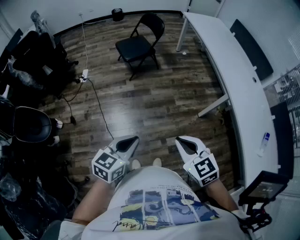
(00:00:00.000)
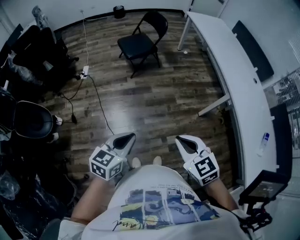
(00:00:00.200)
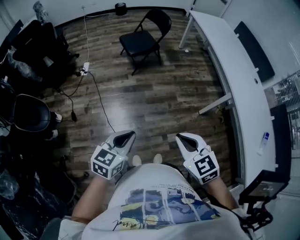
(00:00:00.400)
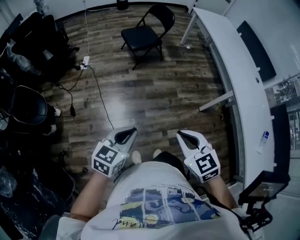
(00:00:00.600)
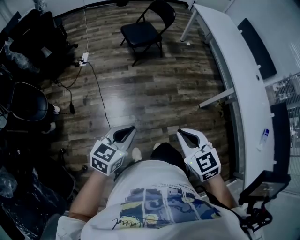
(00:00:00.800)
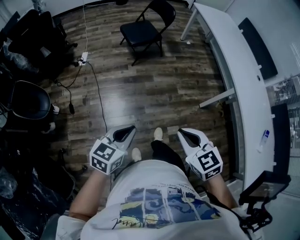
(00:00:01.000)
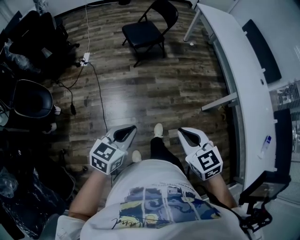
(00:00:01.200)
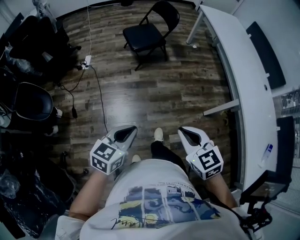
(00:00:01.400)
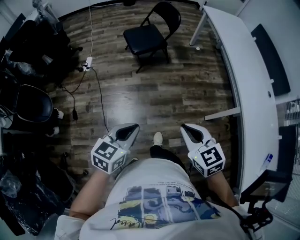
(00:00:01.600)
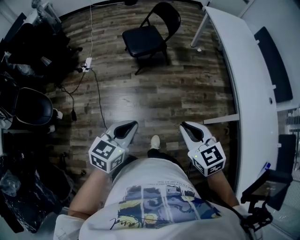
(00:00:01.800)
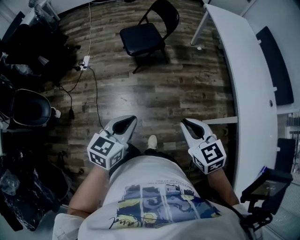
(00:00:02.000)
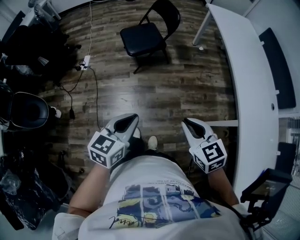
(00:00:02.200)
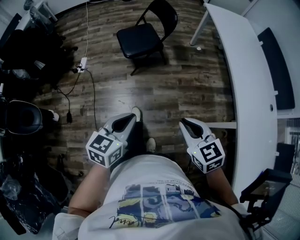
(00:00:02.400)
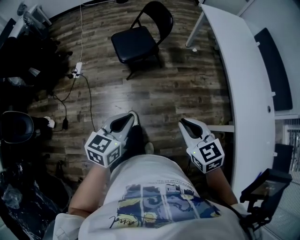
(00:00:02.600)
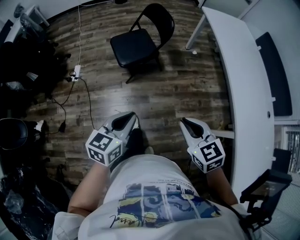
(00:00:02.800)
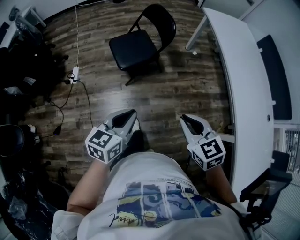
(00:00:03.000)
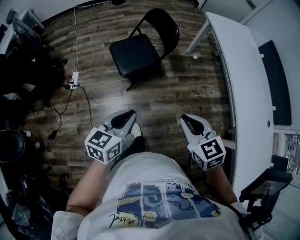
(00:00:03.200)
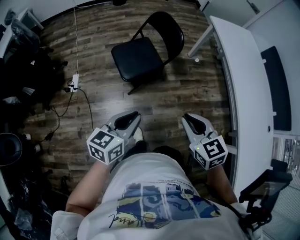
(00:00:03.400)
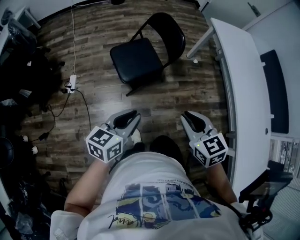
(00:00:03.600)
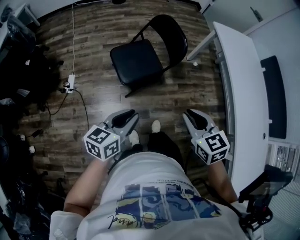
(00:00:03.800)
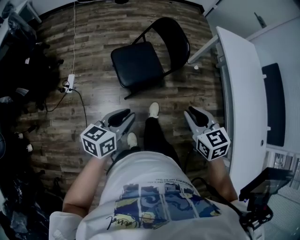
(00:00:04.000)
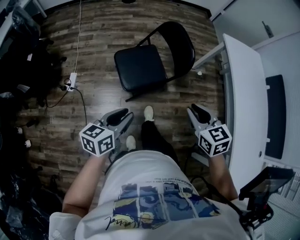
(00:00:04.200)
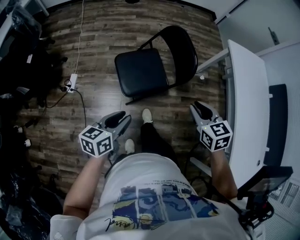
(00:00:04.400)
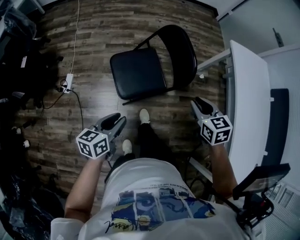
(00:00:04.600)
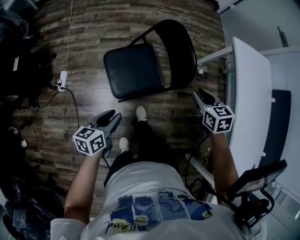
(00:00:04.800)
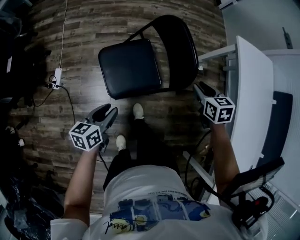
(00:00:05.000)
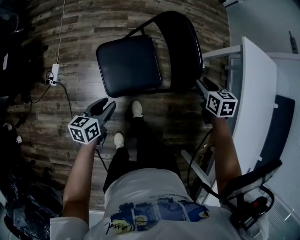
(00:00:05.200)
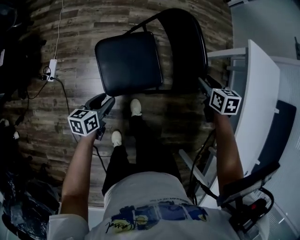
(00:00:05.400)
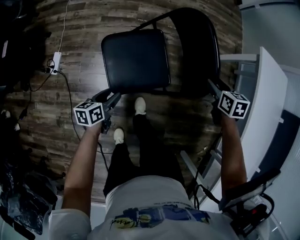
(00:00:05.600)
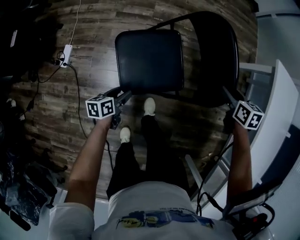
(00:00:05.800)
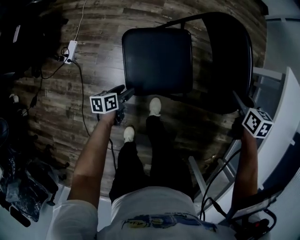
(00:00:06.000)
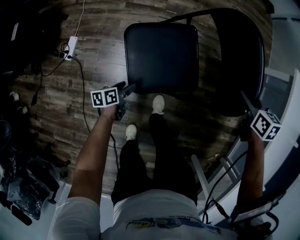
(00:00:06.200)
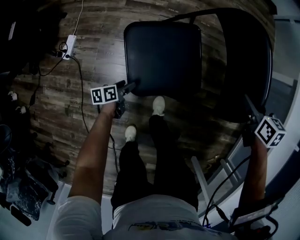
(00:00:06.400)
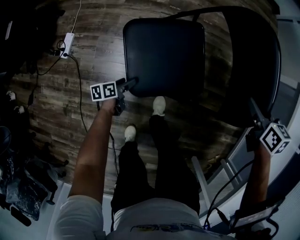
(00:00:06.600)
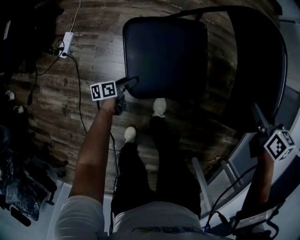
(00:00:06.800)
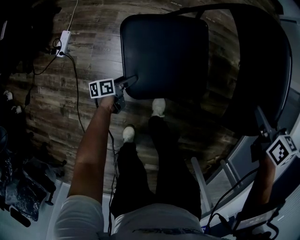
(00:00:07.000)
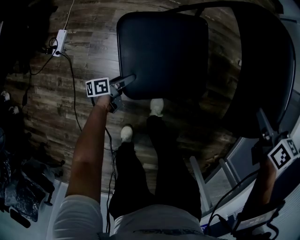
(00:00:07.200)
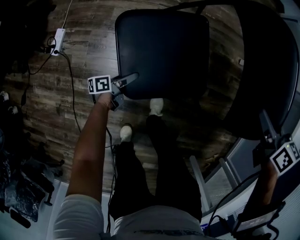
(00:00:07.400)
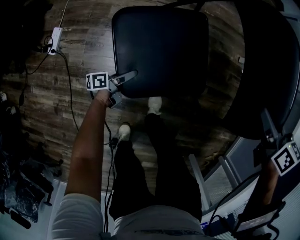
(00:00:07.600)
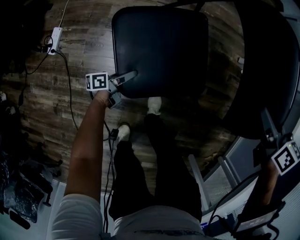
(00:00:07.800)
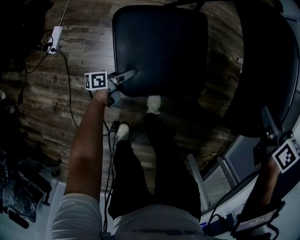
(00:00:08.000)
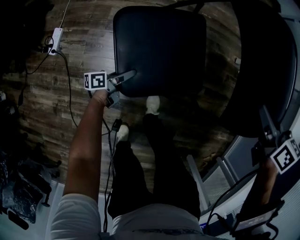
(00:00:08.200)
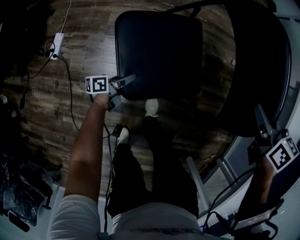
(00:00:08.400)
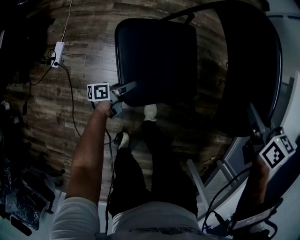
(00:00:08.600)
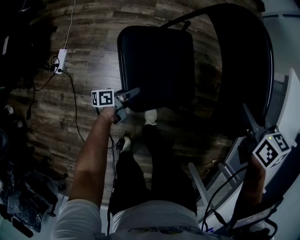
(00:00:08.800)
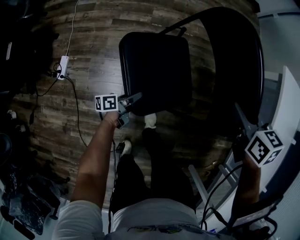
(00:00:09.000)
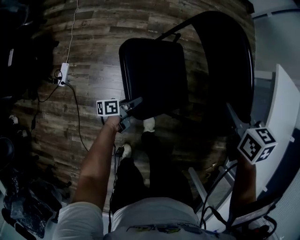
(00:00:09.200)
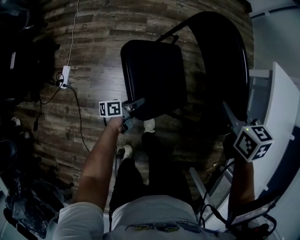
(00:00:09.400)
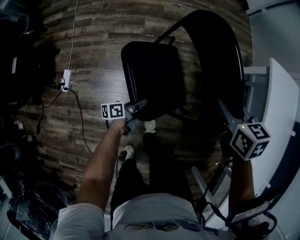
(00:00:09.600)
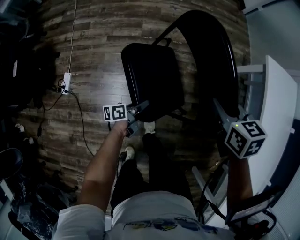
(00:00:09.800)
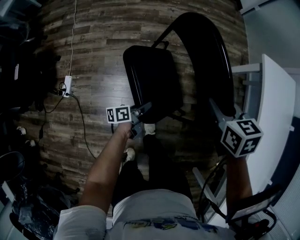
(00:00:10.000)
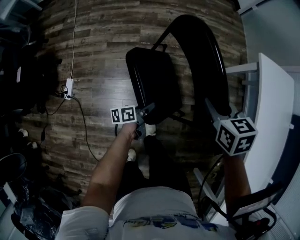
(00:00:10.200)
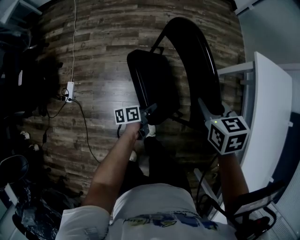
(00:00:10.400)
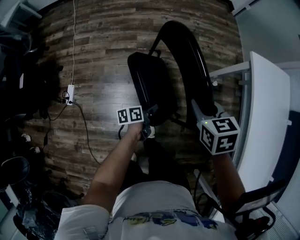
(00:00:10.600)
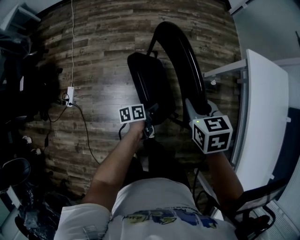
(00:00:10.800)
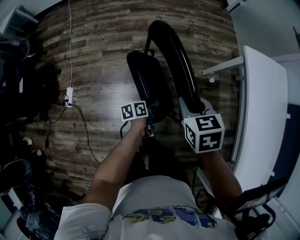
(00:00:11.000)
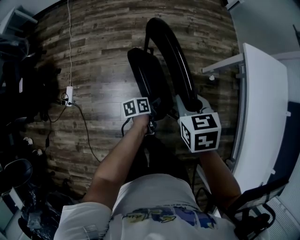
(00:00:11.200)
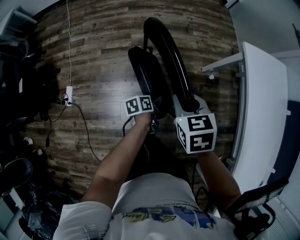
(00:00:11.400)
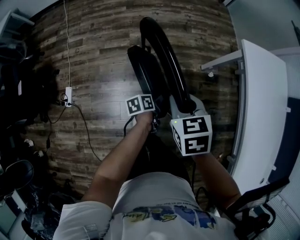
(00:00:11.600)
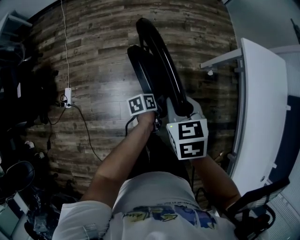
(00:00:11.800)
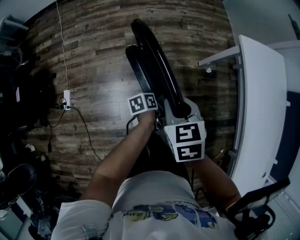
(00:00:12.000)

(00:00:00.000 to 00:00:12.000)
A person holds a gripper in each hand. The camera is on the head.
00:00:00.000 - 00:00:01.600: The two grippers go approximately 15 cm forward.
00:00:01.600 - 00:00:03.000: Both grippers travel together forward, roughly 30 cm.
00:00:03.000 - 00:00:04.400: The left gripper shifts roughly 25 cm forward and to the left; the right gripper moves forward, about 35 cm.
00:00:04.400 - 00:00:06.000: The left gripper is displaced downward and forward by about 40 cm, swivels about 30 degrees, and opens up. The right gripper heads forward and downward, covering about 35 cm, changes its angle by roughly 20 degrees, and opens up.
00:00:06.000 - 00:00:07.600: The left gripper heads downward, covering roughly 15 cm, and rotates some 30 degrees.
00:00:07.600 - 00:00:09.000: The right gripper heads upward, covering about 5 cm, and closes; the left gripper heads upward and to the right, covering approximately 15 cm, and closes its fingers.
00:00:09.000 - 00:00:10.400: The left gripper shifts about 15 cm to the right and upward.
00:00:10.400 - 00:00:12.000: The right gripper moves approximately 5 cm; the left gripper is displaced to the right by roughly 5 cm.

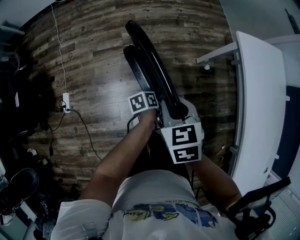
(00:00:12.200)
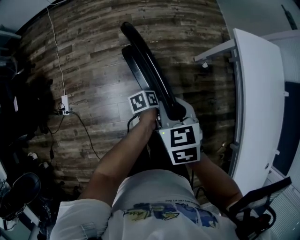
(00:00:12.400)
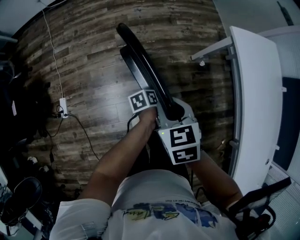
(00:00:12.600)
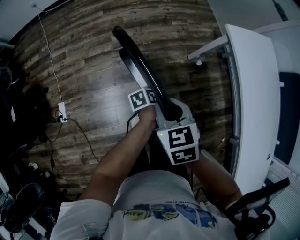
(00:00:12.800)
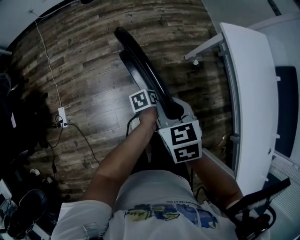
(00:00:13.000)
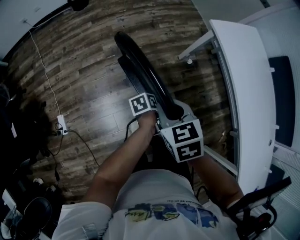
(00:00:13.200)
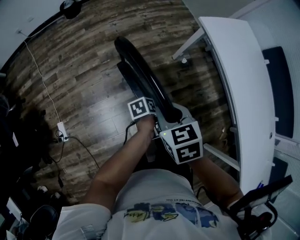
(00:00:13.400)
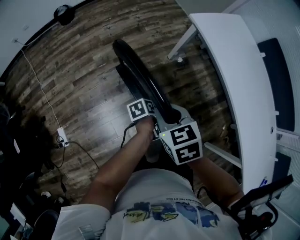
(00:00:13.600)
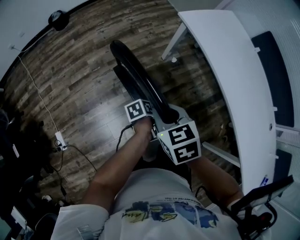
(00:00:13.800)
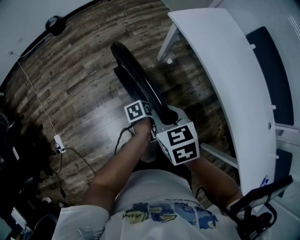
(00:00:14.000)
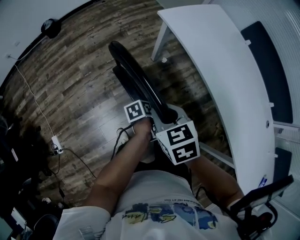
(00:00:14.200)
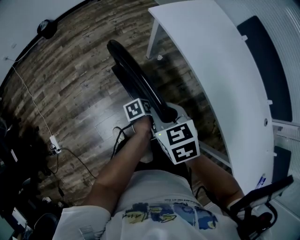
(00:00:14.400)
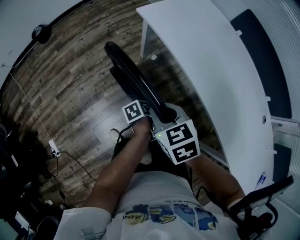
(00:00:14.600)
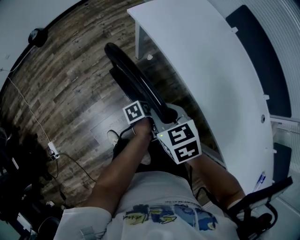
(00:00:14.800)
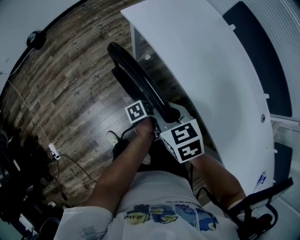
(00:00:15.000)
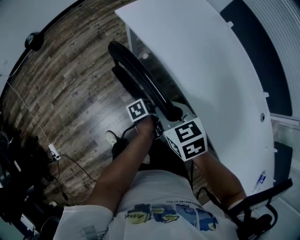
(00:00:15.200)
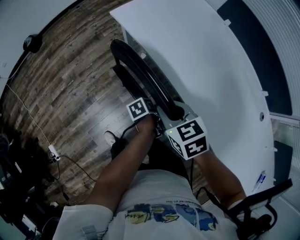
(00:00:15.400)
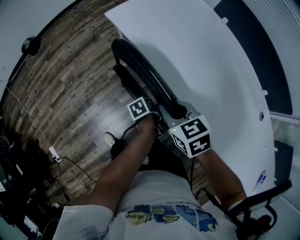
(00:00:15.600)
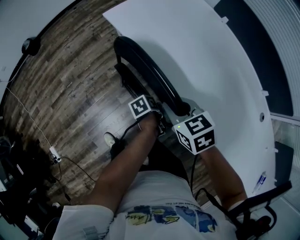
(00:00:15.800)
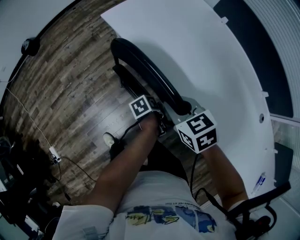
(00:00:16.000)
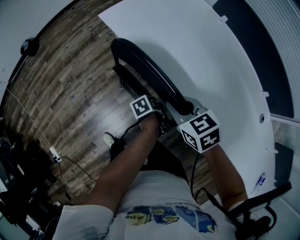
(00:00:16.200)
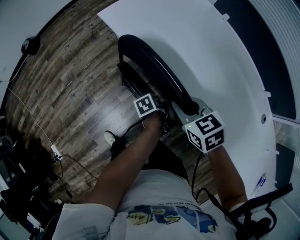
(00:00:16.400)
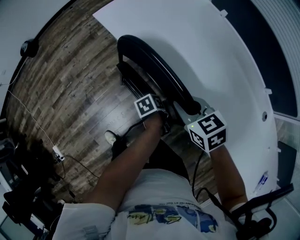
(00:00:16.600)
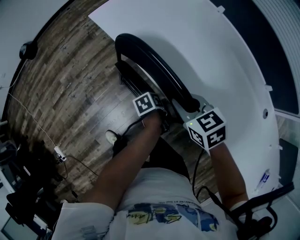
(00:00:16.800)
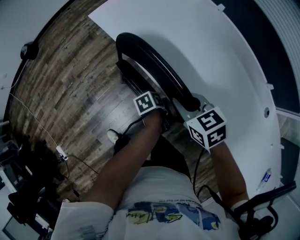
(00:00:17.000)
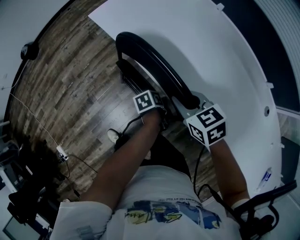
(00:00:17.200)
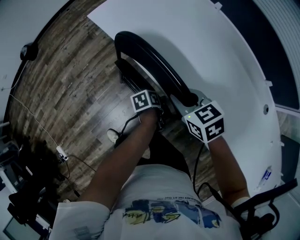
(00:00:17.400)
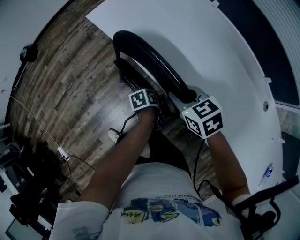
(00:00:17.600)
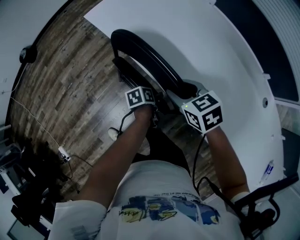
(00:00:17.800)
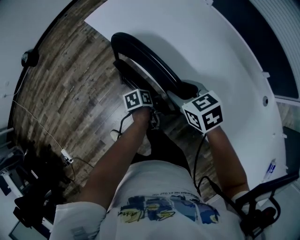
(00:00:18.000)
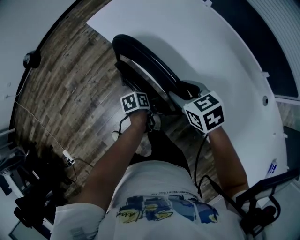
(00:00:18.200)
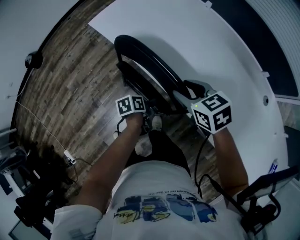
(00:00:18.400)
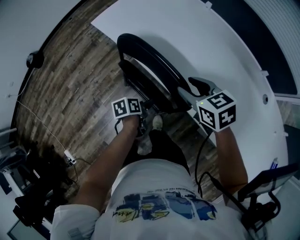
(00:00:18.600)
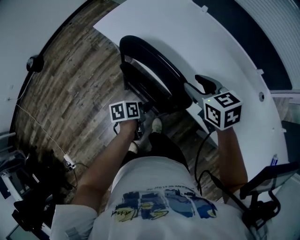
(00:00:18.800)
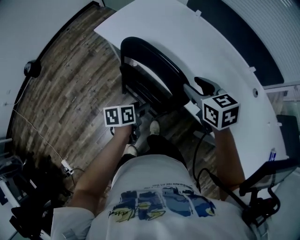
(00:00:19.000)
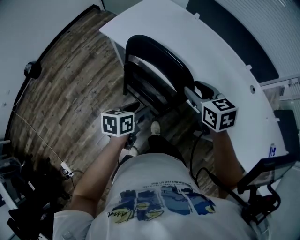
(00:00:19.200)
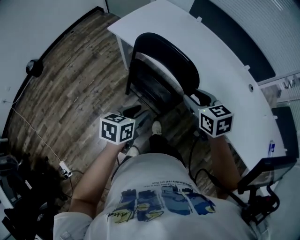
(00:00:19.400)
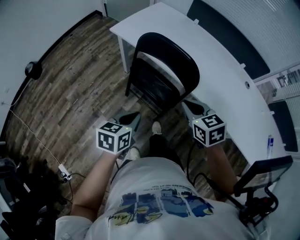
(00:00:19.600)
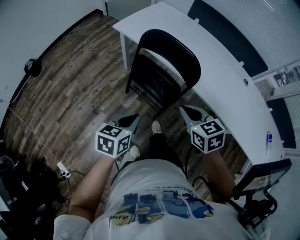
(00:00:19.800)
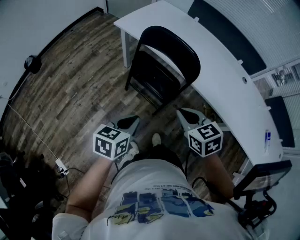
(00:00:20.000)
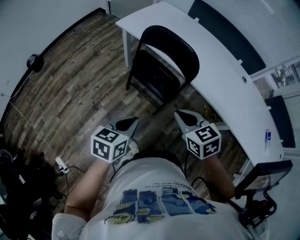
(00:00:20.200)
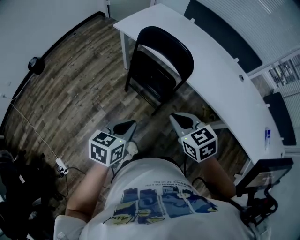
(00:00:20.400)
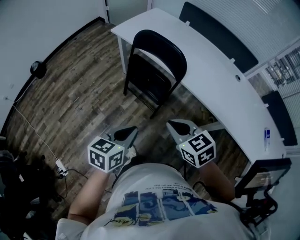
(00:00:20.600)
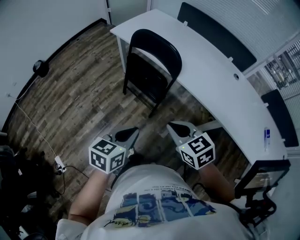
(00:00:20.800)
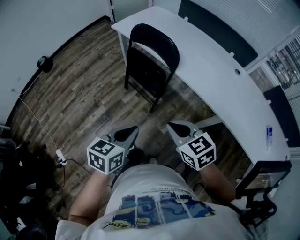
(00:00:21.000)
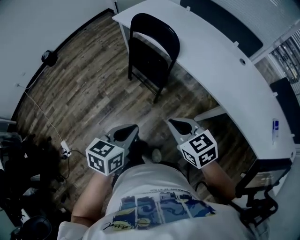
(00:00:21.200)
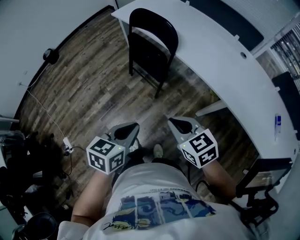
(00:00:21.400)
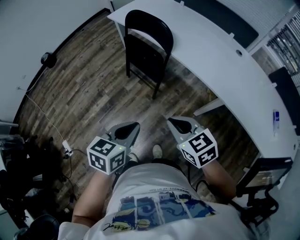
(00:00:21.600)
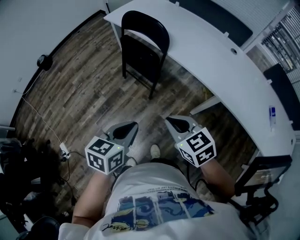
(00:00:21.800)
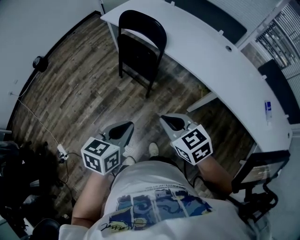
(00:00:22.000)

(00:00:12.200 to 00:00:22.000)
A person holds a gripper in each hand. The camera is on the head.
00:00:12.200 - 00:00:13.600: The right gripper travels to the right by about 5 cm. Meanwhile the left gripper travels to the right and backward by roughly 10 cm, and rotates roughly 20 degrees.
00:00:13.600 - 00:00:15.000: Both grippers move to the right, about 30 cm.
00:00:15.000 - 00:00:16.400: The grippers both shift to the right and forward by some 15 cm.
00:00:16.400 - 00:00:17.800: The right gripper opens its fingers.
00:00:17.800 - 00:00:19.200: The left gripper shifts some 25 cm upward, backward and to the left, and swivels some 40 degrees, while the right gripper heads upward and backward, covering about 15 cm, and turns by approximately 20 degrees.
00:00:19.200 - 00:00:20.600: The two grippers go about 30 cm backward. The left gripper closes. Meanwhile the right gripper closes up.
00:00:20.600 - 00:00:22.000: The two grippers go roughly 20 cm backward and to the right.

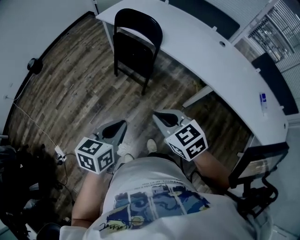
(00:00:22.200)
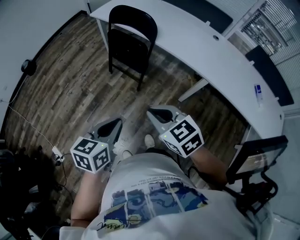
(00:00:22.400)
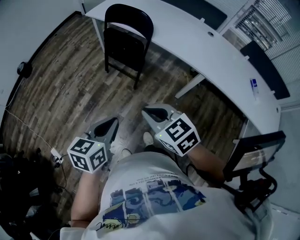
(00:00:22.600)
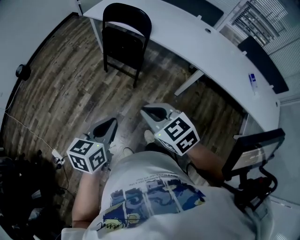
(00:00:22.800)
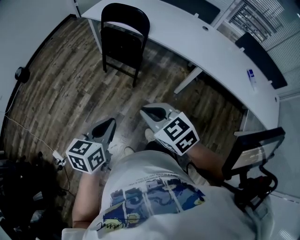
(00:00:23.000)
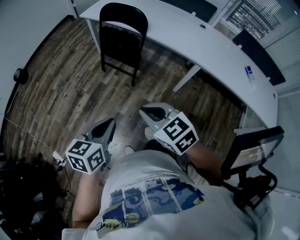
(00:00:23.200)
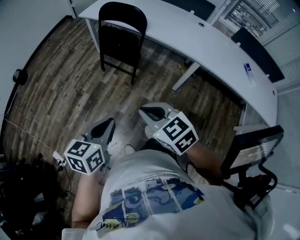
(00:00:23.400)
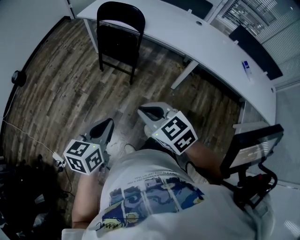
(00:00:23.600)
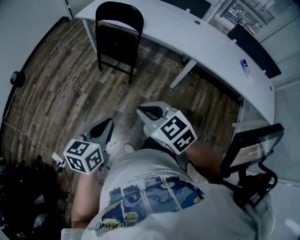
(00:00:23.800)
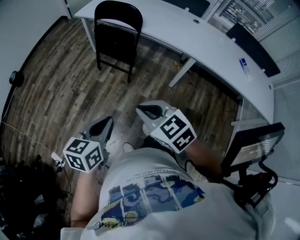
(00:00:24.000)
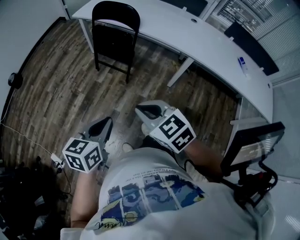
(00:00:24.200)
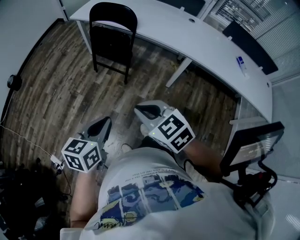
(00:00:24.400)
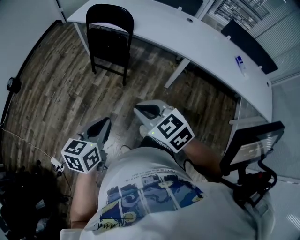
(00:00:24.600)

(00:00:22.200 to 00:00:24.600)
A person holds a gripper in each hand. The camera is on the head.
00:00:22.200 - 00:00:23.400: Both grippers travel together backward and to the left, about 15 cm.
00:00:23.400 - 00:00:24.600: The grippers make only small movements.
